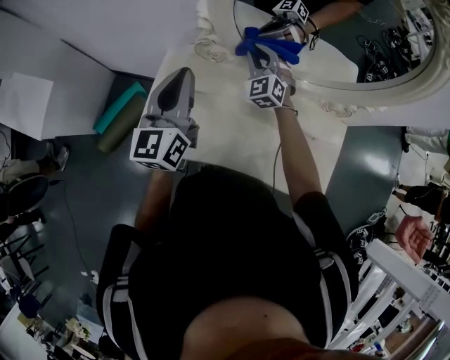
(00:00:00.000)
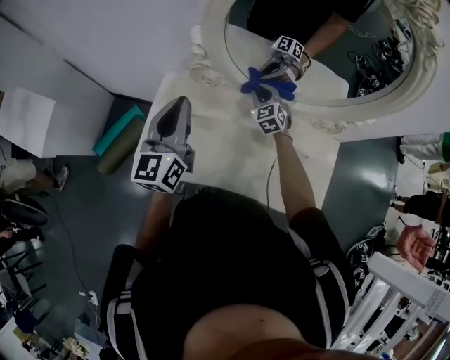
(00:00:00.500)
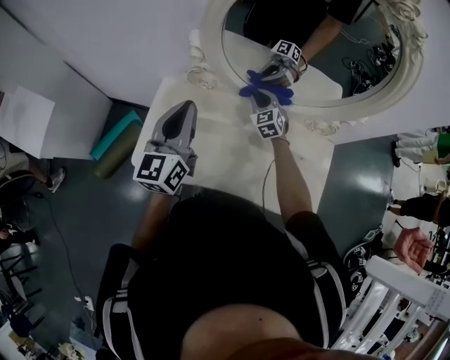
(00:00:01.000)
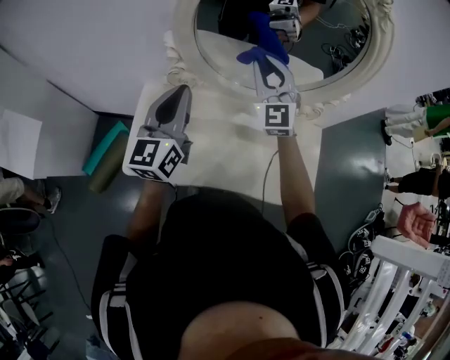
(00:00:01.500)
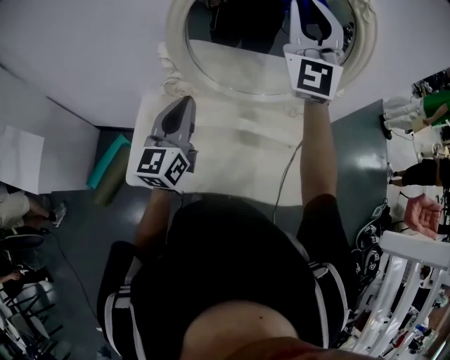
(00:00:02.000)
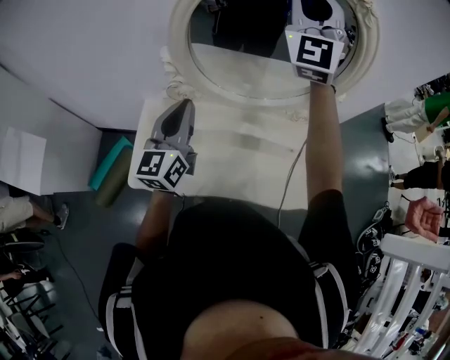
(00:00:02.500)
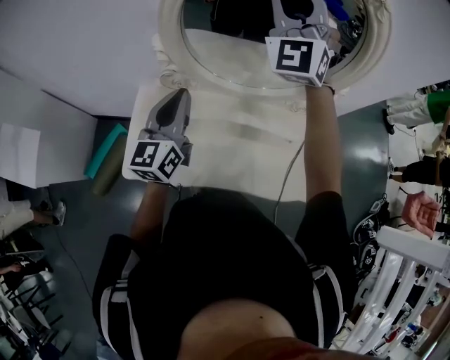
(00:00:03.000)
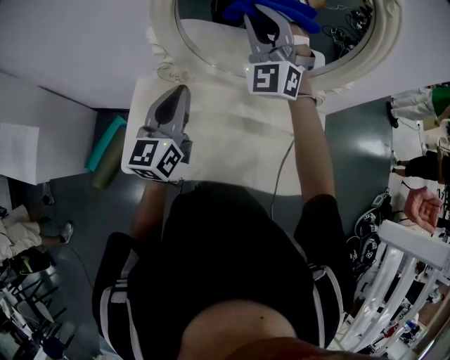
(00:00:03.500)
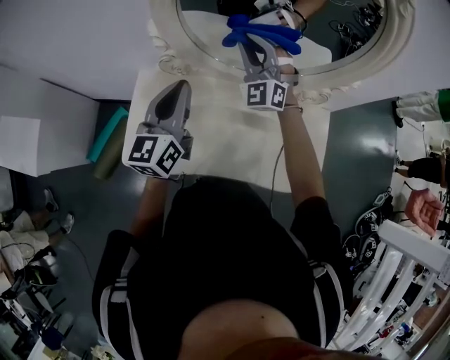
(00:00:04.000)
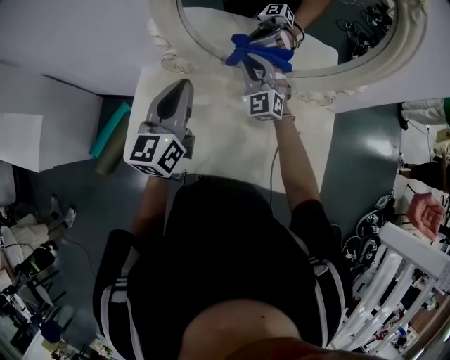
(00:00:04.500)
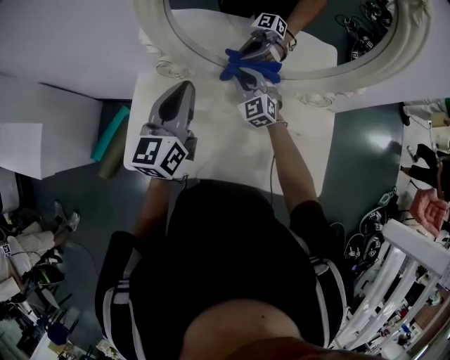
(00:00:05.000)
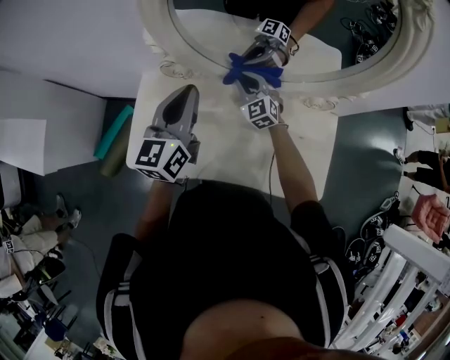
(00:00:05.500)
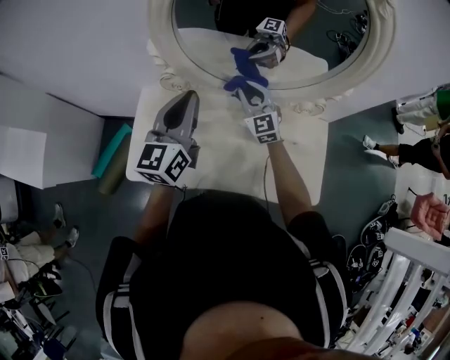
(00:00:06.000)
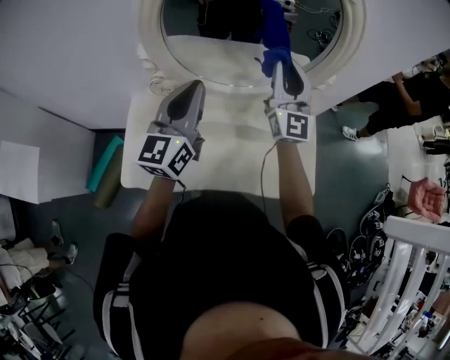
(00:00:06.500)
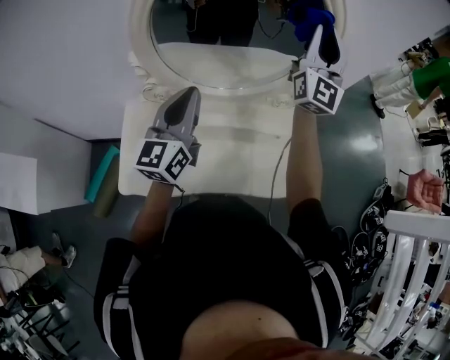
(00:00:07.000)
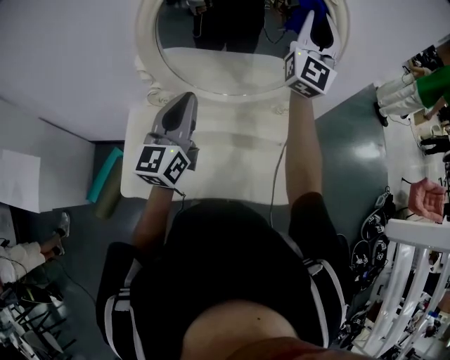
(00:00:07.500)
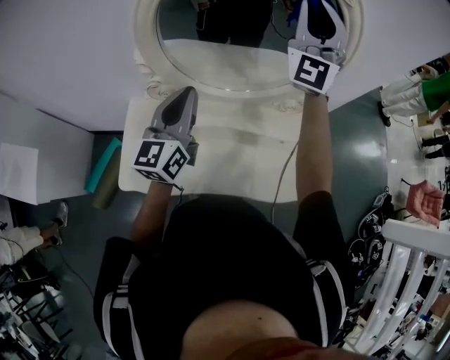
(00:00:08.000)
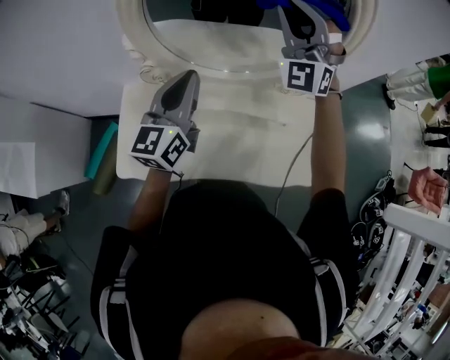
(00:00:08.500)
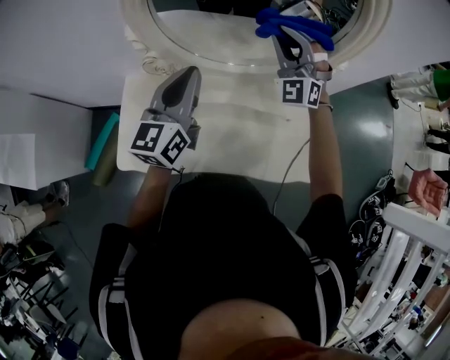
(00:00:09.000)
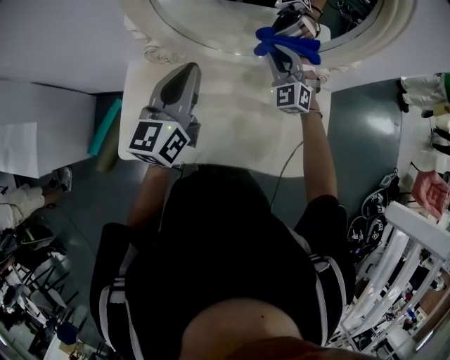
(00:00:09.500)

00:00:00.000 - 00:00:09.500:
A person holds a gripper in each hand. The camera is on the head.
00:00:00.000 - 00:00:02.000: The right gripper is displaced upward by some 40 cm, and points its fingers approximately 40 degrees further upward. The left gripper shifts some 10 cm to the right.
00:00:02.000 - 00:00:04.000: The right gripper travels downward by about 30 cm, and swivels about 30 degrees.
00:00:04.000 - 00:00:05.500: The right gripper shifts about 20 cm downward, and turns by about 30 degrees.
00:00:05.500 - 00:00:07.500: The left gripper heads upward, covering about 5 cm, while the right gripper moves upward and to the right, approximately 50 cm, and points its fingers roughly 50 degrees further upward.
00:00:07.500 - 00:00:09.500: The left gripper shifts by about 5 cm. Meanwhile the right gripper moves downward, some 35 cm, and tilts its fingers roughly 50 degrees downward.

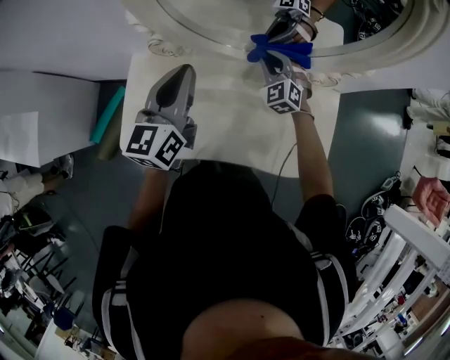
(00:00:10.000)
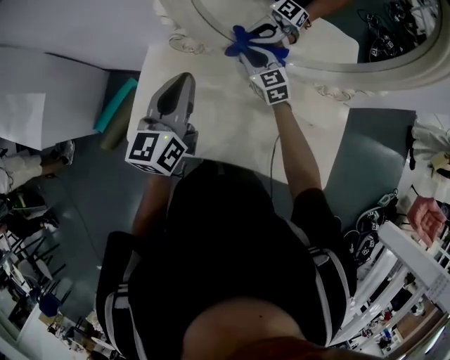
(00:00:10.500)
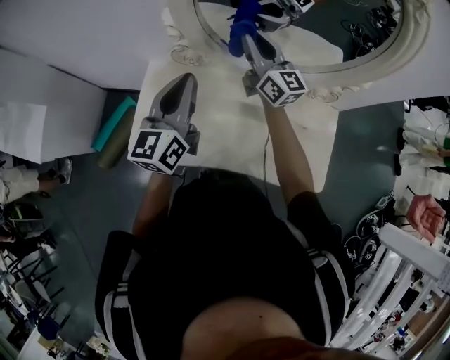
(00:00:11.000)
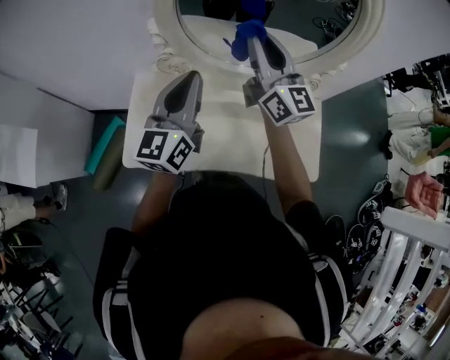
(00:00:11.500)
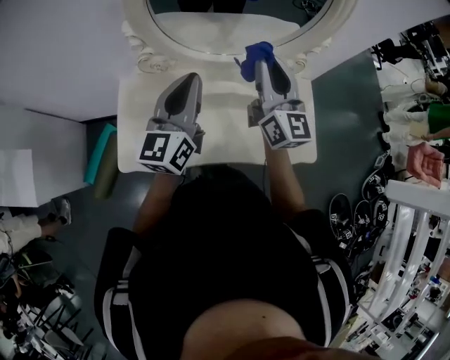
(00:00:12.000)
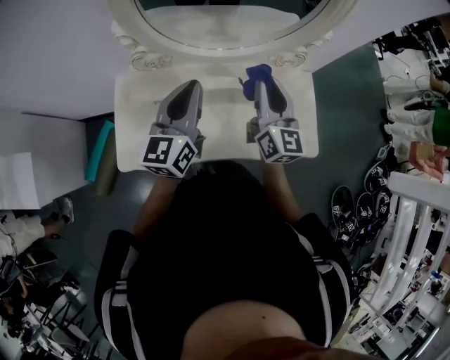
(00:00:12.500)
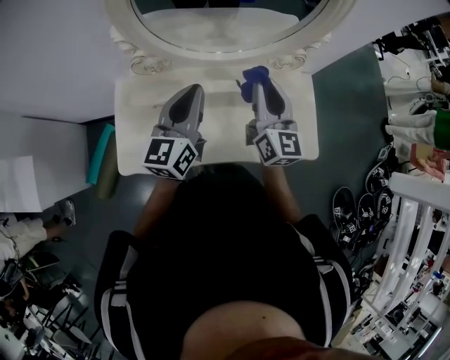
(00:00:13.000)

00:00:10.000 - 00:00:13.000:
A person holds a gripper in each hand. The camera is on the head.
00:00:10.000 - 00:00:11.500: The right gripper goes some 30 cm upward, and tips its fingers upward by some 50 degrees. The left gripper goes approximately 10 cm upward and backward.
00:00:11.500 - 00:00:13.000: The right gripper goes some 15 cm downward, to the right and backward, and turns by approximately 30 degrees. Meanwhile the left gripper shifts some 10 cm downward and to the right.

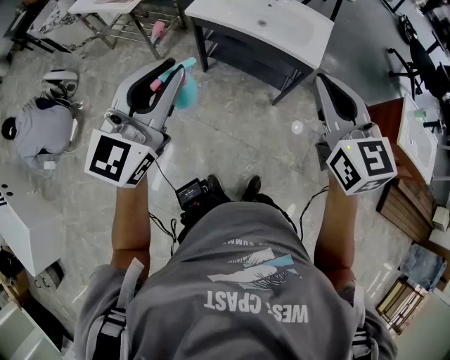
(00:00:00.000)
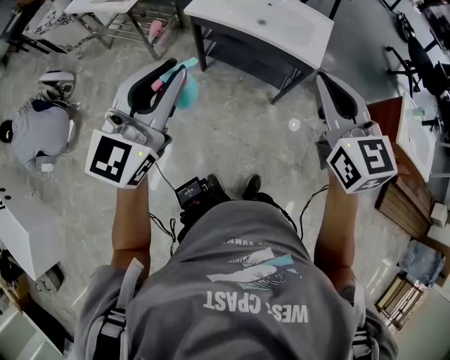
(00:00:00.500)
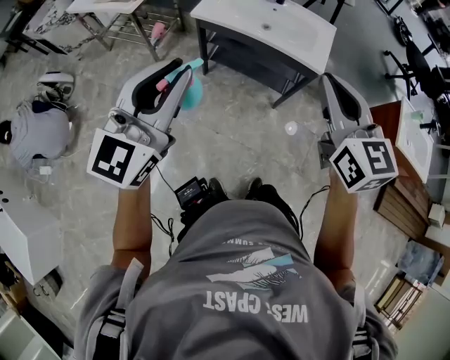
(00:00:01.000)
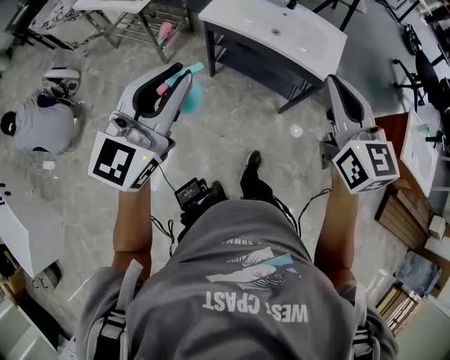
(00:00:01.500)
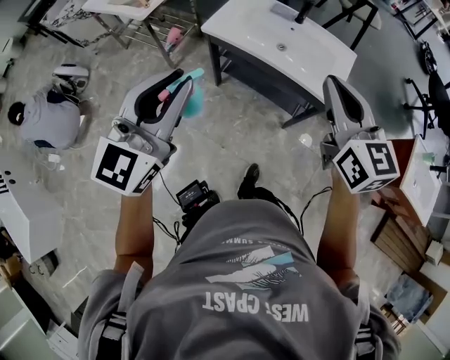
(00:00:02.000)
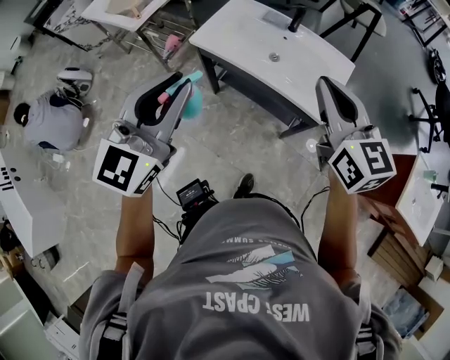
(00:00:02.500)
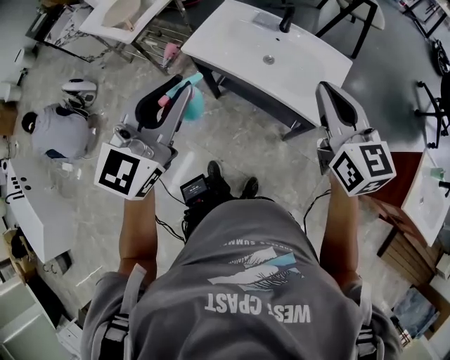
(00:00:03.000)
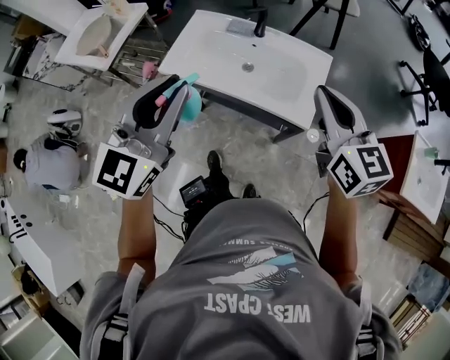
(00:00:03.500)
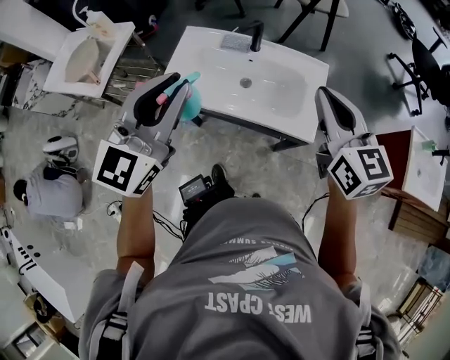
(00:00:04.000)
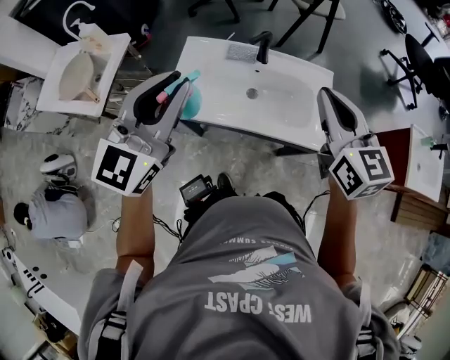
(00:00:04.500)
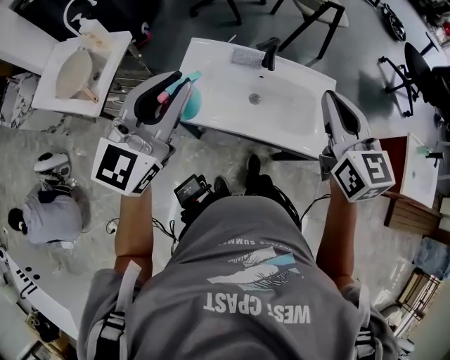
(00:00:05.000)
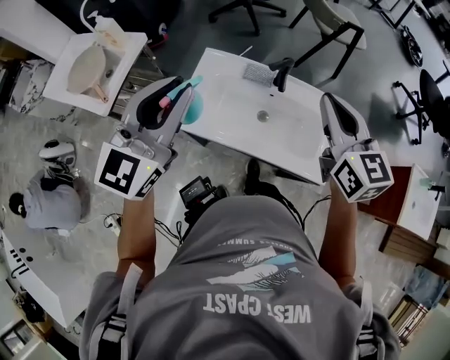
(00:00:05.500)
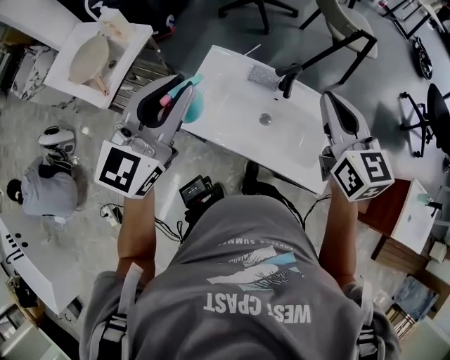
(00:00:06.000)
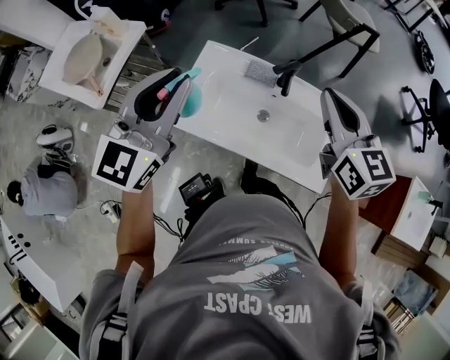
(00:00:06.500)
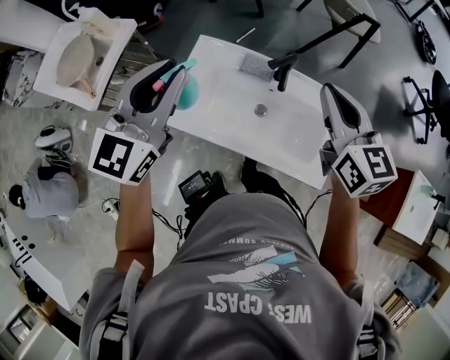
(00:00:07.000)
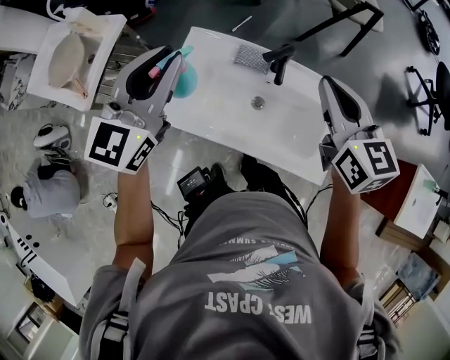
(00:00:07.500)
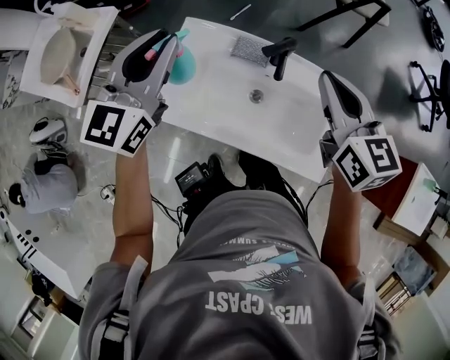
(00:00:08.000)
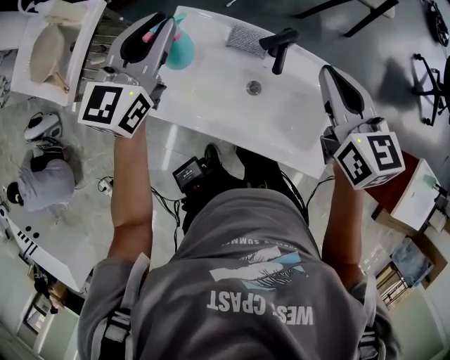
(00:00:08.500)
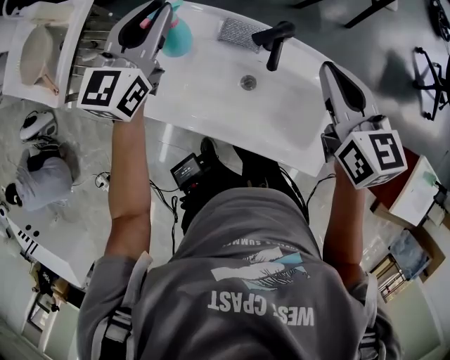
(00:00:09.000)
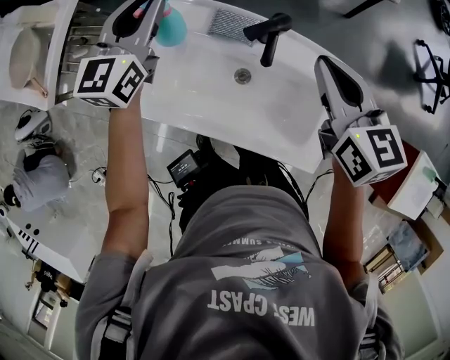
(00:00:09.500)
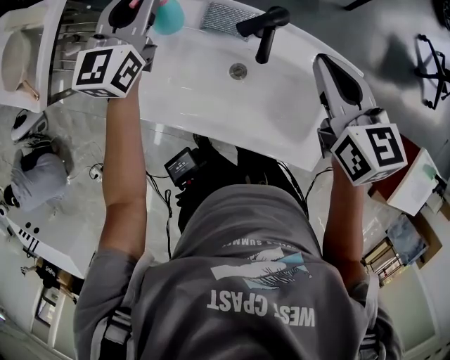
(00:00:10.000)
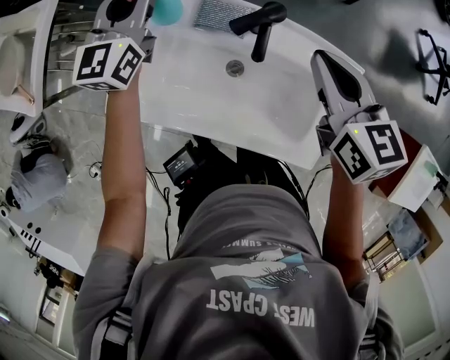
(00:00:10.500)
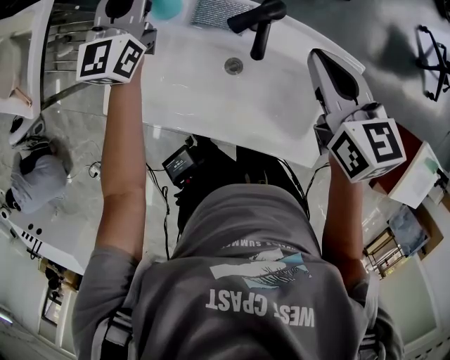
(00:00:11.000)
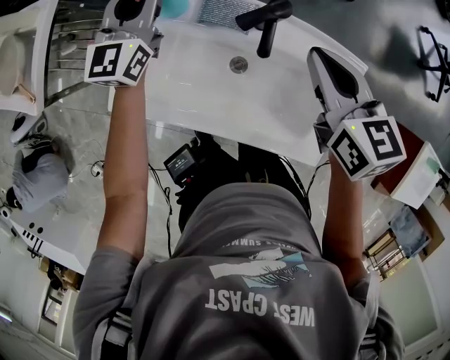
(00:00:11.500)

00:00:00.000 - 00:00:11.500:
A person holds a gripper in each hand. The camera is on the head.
00:00:00.000 - 00:00:02.000: Both grippers travel together forward, approximately 15 cm.
00:00:02.000 - 00:00:04.000: The right gripper goes approximately 20 cm forward and to the right. Meanwhile the left gripper shifts approximately 25 cm forward.
00:00:04.000 - 00:00:06.000: The grippers both shift forward and to the left by approximately 20 cm.
00:00:06.000 - 00:00:07.500: The left gripper is displaced forward and downward by roughly 10 cm. The right gripper travels downward and forward by roughly 10 cm.
00:00:07.500 - 00:00:09.500: The right gripper heads downward and forward, covering about 10 cm, while the left gripper goes about 20 cm downward and forward.
00:00:09.500 - 00:00:11.500: The left gripper travels downward by some 5 cm.

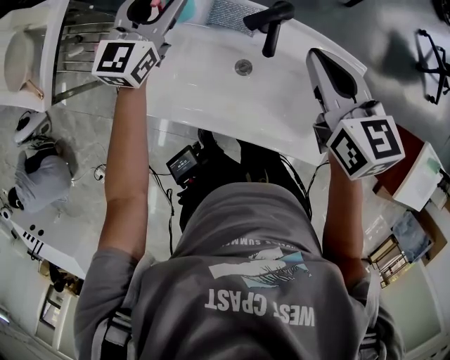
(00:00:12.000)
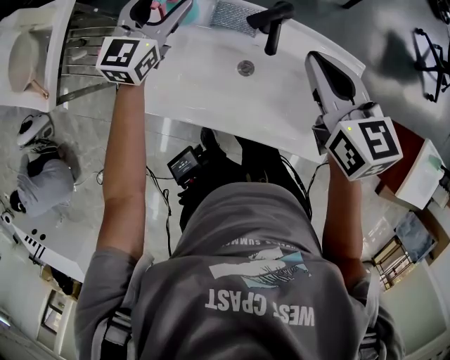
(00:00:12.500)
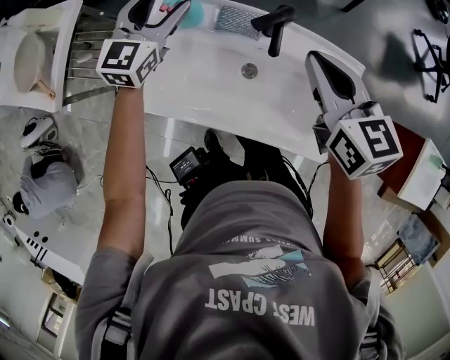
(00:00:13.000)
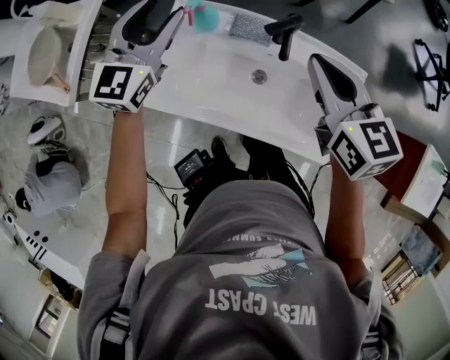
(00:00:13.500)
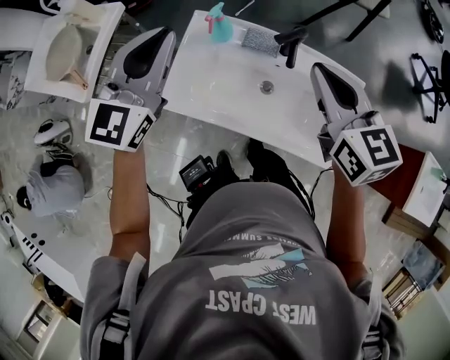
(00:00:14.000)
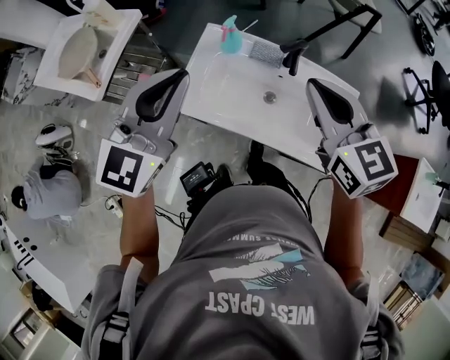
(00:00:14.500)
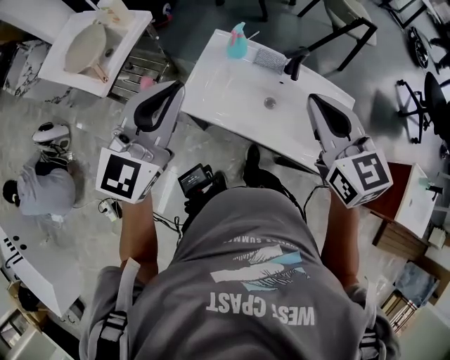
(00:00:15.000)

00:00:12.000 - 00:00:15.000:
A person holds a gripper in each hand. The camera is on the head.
00:00:12.000 - 00:00:13.500: The right gripper shifts approximately 5 cm upward. The left gripper is displaced upward and backward by about 10 cm.
00:00:13.500 - 00:00:15.000: The left gripper goes roughly 30 cm backward and upward, and closes its fingers. The right gripper moves backward, upward and to the left, approximately 20 cm.
